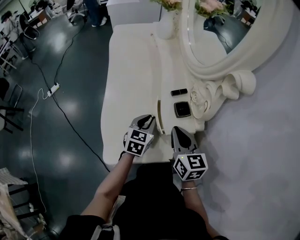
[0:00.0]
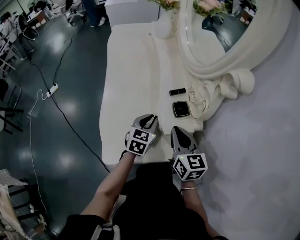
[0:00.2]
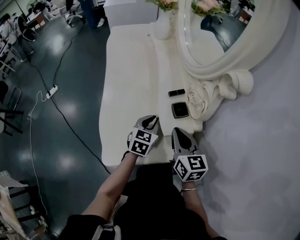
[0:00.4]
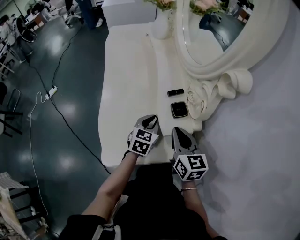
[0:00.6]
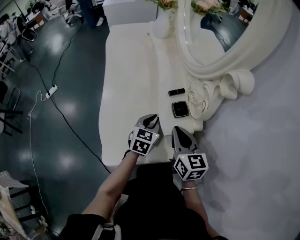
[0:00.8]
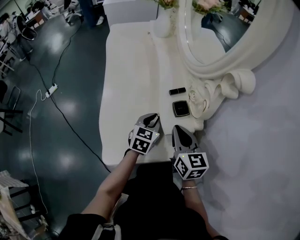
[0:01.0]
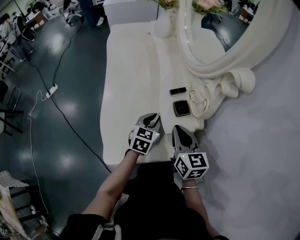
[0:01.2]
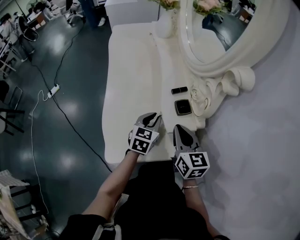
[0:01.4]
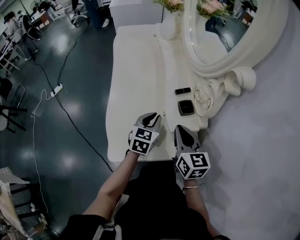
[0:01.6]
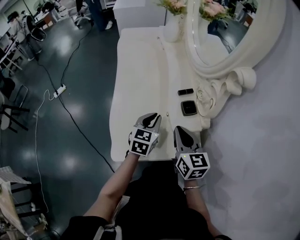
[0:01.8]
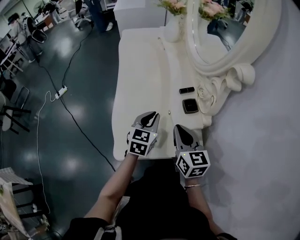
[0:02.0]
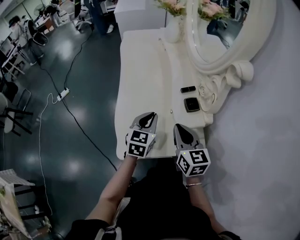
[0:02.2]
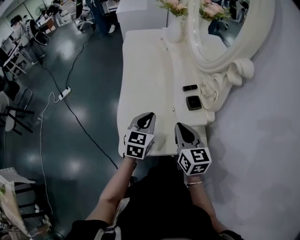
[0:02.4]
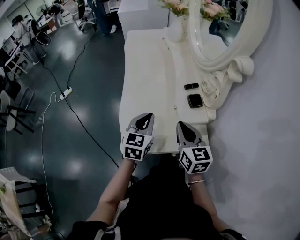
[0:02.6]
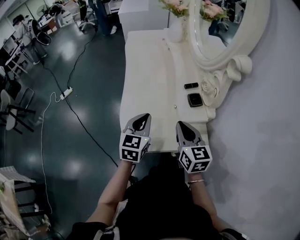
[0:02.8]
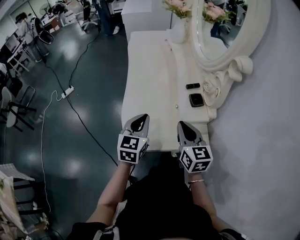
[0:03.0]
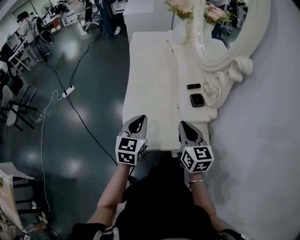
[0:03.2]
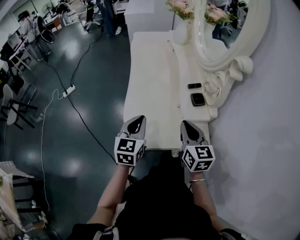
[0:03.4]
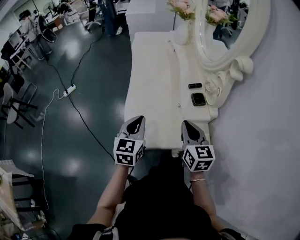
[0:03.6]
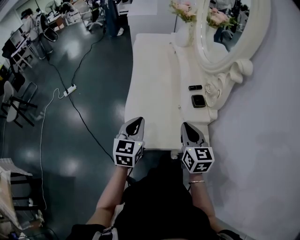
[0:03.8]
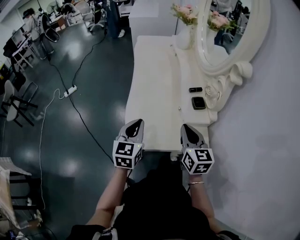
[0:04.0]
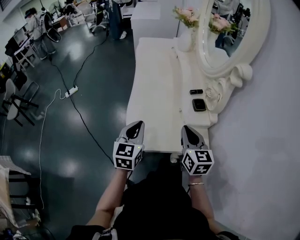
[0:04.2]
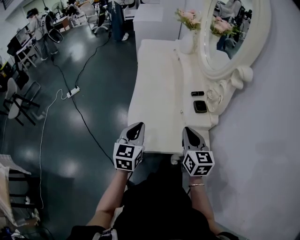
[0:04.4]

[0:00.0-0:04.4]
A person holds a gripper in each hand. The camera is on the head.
0:00.0 to 0:01.4: The grippers stay close to where they were, moving slightly.
0:01.4 to 0:03.0: The left gripper shifts roughly 20 cm to the left, backward and upward. Meanwhile the right gripper heads to the left and backward, covering some 10 cm.
0:03.0 to 0:04.4: The left gripper ends up some 5 cm from where it was.

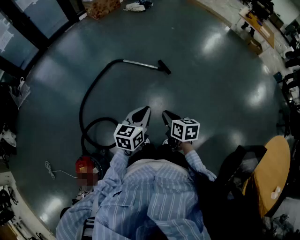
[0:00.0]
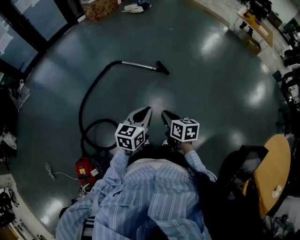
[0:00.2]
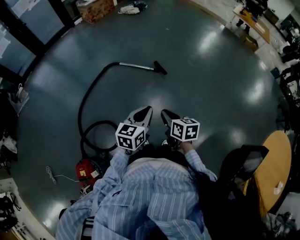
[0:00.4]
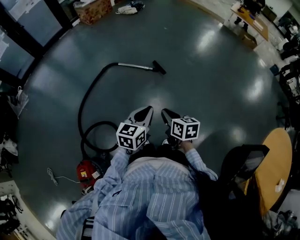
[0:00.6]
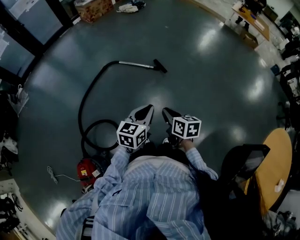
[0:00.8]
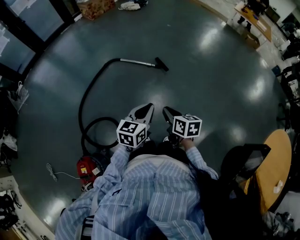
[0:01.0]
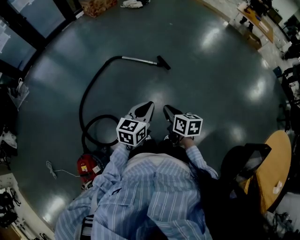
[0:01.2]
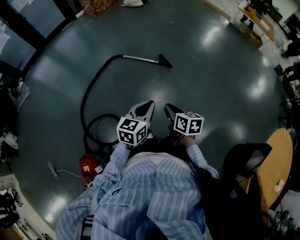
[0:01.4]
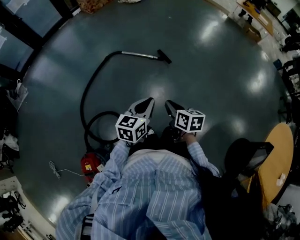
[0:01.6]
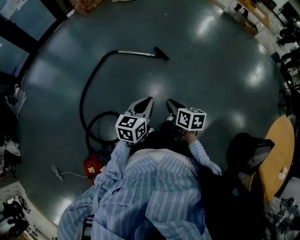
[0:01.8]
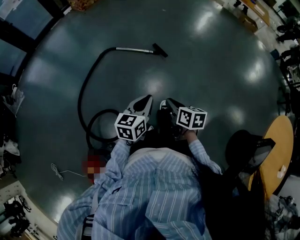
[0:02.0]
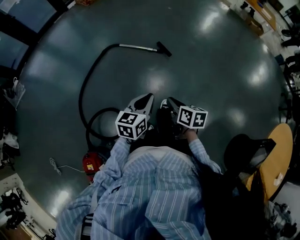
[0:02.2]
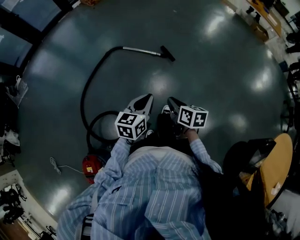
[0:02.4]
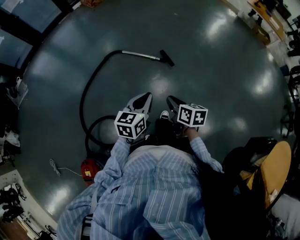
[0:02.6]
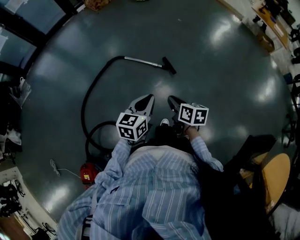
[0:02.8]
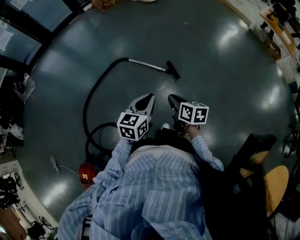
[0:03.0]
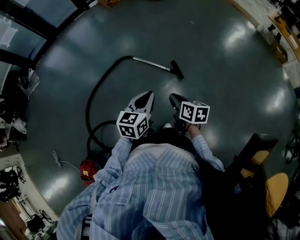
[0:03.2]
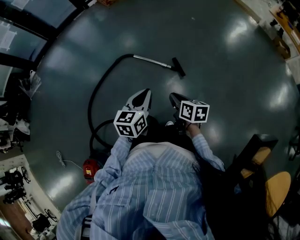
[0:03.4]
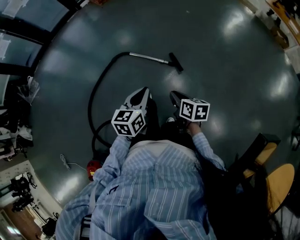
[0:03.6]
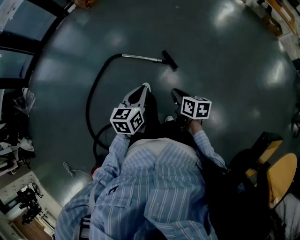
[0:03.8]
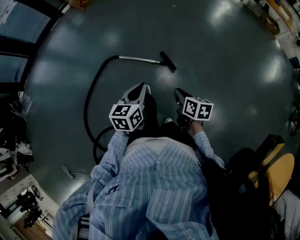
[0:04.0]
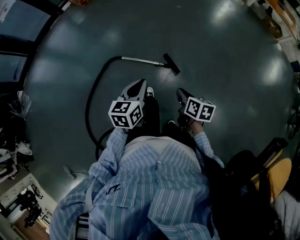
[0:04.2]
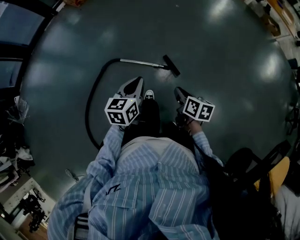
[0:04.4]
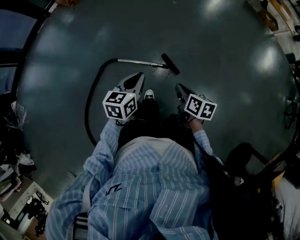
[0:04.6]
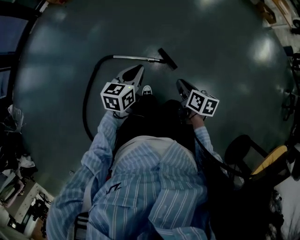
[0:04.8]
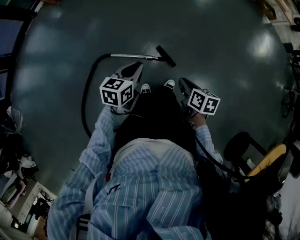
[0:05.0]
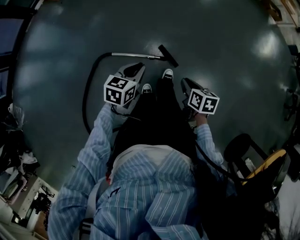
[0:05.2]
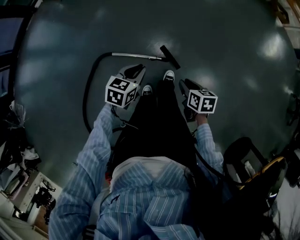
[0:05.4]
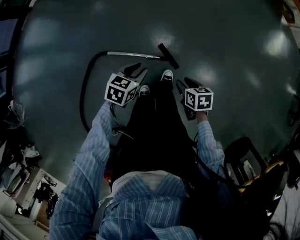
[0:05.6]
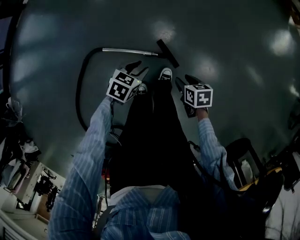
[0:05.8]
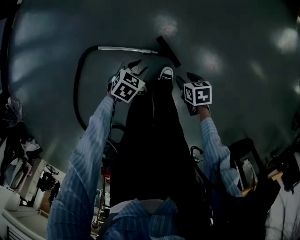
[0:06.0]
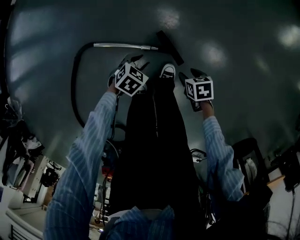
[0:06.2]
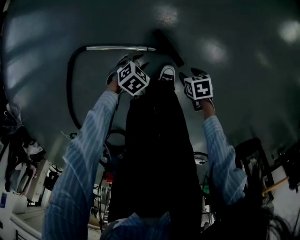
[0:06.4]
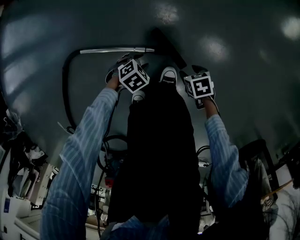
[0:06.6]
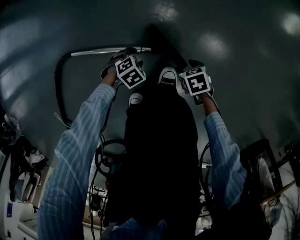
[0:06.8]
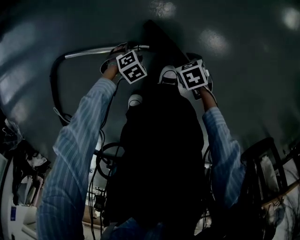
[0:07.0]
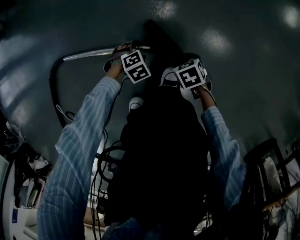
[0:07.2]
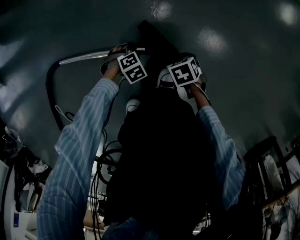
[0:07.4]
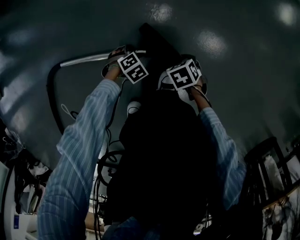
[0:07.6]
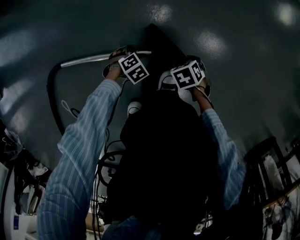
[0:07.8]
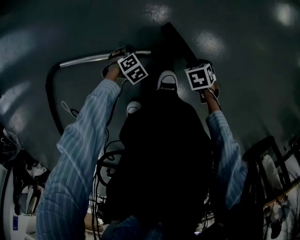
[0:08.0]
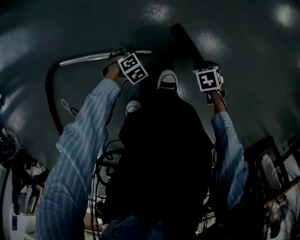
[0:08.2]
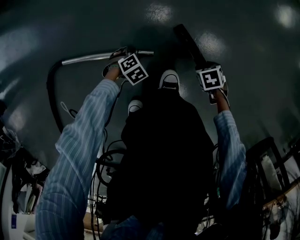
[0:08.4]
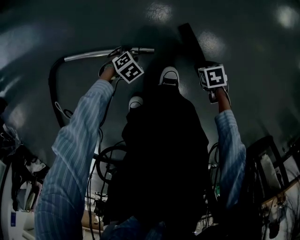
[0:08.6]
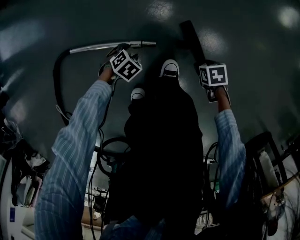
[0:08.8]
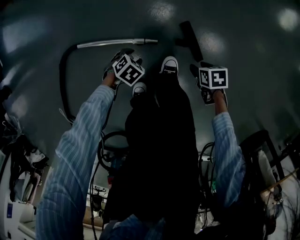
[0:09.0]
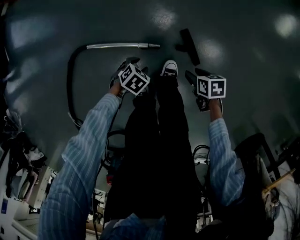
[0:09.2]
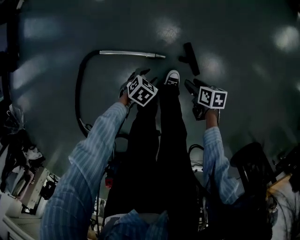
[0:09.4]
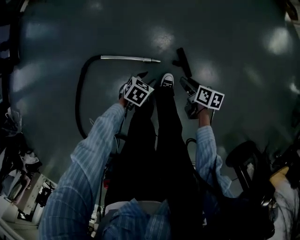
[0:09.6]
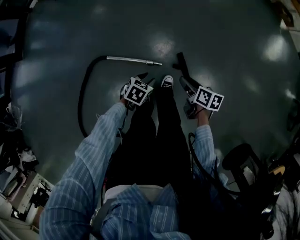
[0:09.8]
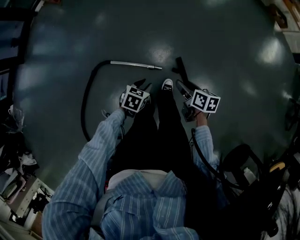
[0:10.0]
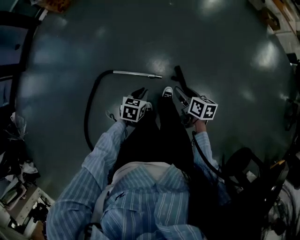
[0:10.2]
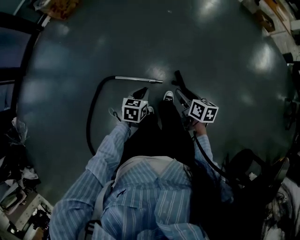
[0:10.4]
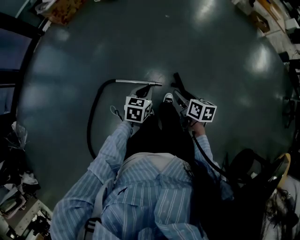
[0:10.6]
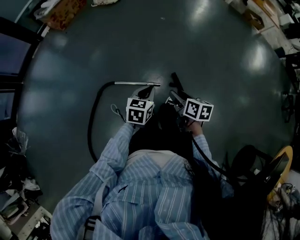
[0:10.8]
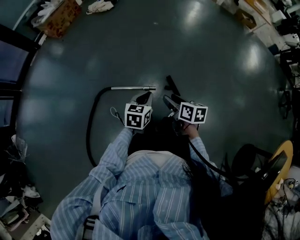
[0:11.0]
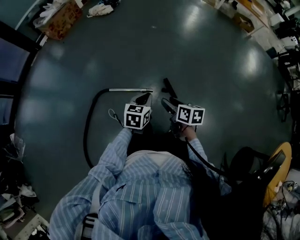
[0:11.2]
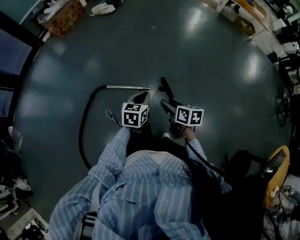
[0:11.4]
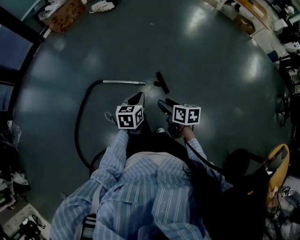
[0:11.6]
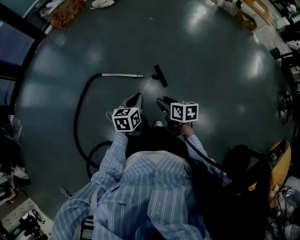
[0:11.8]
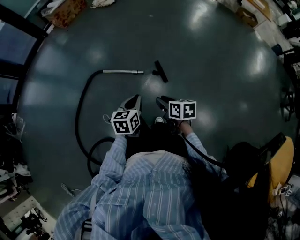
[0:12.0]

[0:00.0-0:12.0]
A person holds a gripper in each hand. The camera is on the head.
0:00.0 to 0:01.6: The grippers make only small movements.
0:01.6 to 0:03.0: The two grippers go some 25 cm forward.
0:03.0 to 0:04.4: Both grippers move forward, about 25 cm. The right gripper changes its angle by about 20 degrees.
0:04.4 to 0:06.0: Both grippers travel together downward, about 35 cm. The right gripper rotates about 30 degrees, and opens up; the left gripper tilts its fingers some 30 degrees downward, and opens.
0:06.0 to 0:07.6: The two grippers go roughly 40 cm downward. The right gripper turns by about 20 degrees. The left gripper rotates roughly 40 degrees.
0:07.6 to 0:09.0: The two grippers go some 15 cm upward. The right gripper swivels roughly 20 degrees. Meanwhile the left gripper rotates approximately 20 degrees.
0:09.0 to 0:10.4: Both grippers travel together upward, roughly 50 cm. The right gripper angles its fingers upward, by about 30 degrees. Meanwhile the left gripper tips its fingers upward by about 30 degrees, and closes its fingers.
0:10.4 to 0:12.0: The left gripper moves backward and to the right, roughly 35 cm. Meanwhile the right gripper goes some 30 cm backward, and closes its fingers.

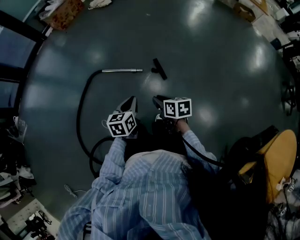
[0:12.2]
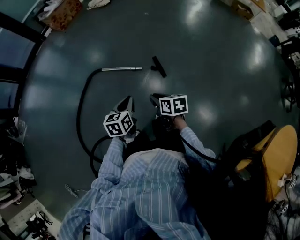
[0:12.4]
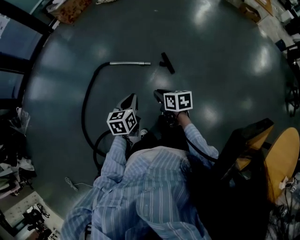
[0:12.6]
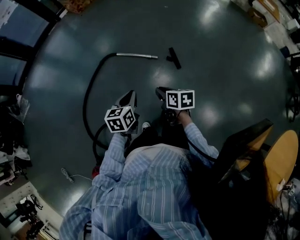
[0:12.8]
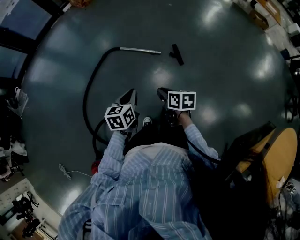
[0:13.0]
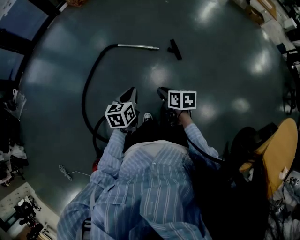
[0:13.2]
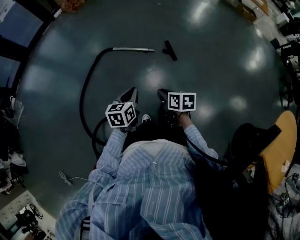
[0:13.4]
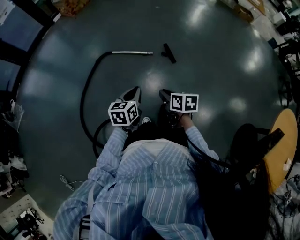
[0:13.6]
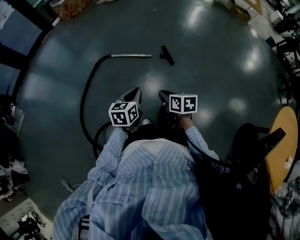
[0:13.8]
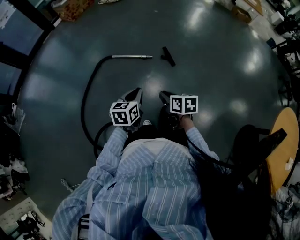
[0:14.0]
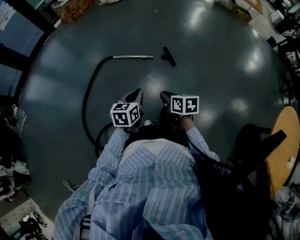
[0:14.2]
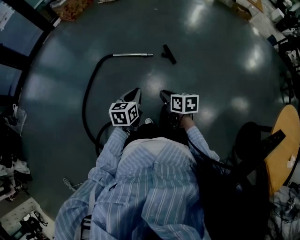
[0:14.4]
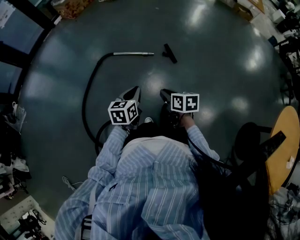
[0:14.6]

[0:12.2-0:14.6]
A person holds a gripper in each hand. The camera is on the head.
0:12.2 to 0:13.4: Both grippers travel together to the left and backward, roughly 25 cm.
0:13.4 to 0:14.6: There are only small adjustments of the grippers.

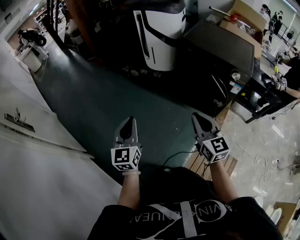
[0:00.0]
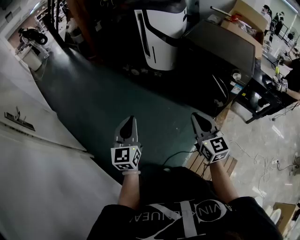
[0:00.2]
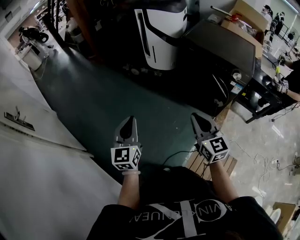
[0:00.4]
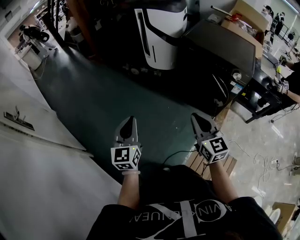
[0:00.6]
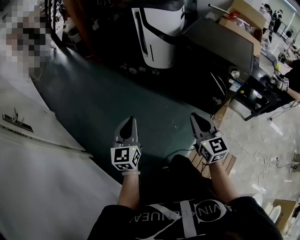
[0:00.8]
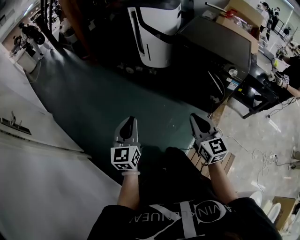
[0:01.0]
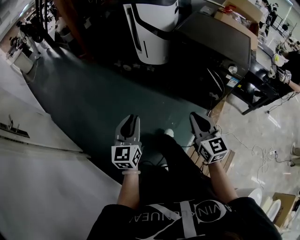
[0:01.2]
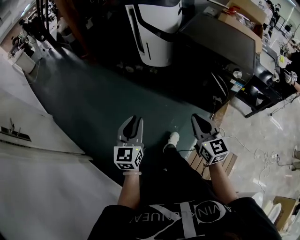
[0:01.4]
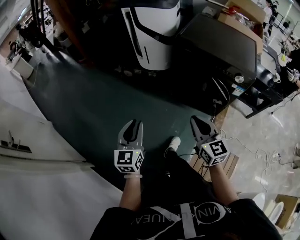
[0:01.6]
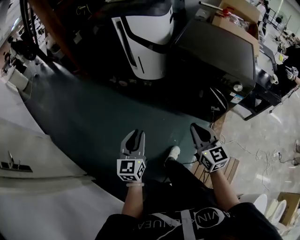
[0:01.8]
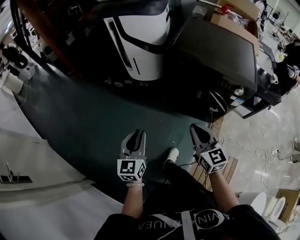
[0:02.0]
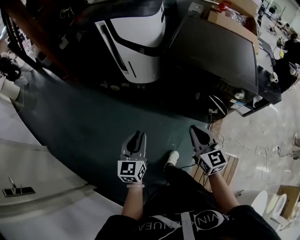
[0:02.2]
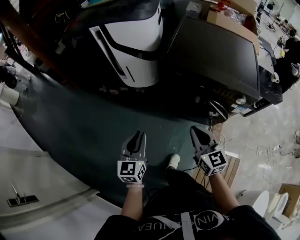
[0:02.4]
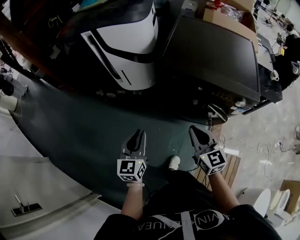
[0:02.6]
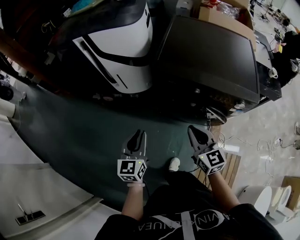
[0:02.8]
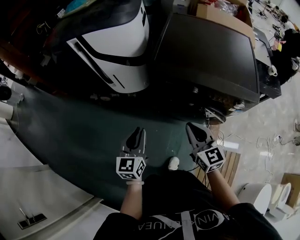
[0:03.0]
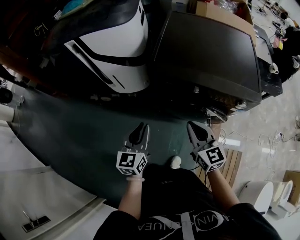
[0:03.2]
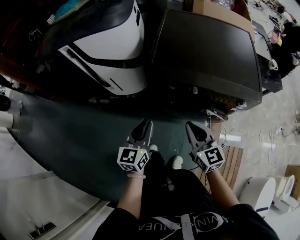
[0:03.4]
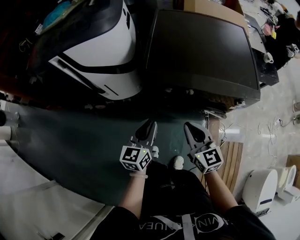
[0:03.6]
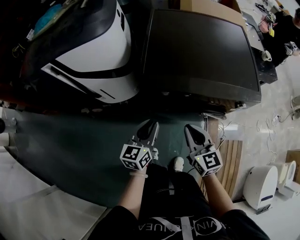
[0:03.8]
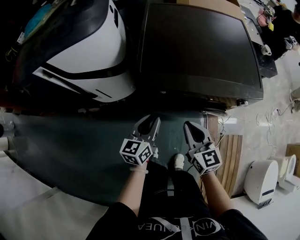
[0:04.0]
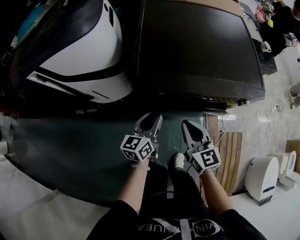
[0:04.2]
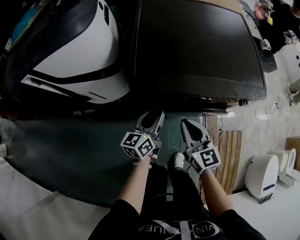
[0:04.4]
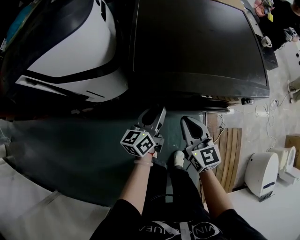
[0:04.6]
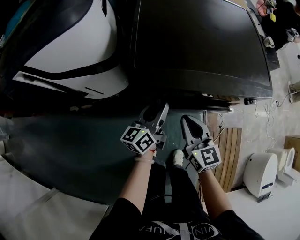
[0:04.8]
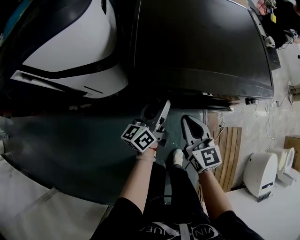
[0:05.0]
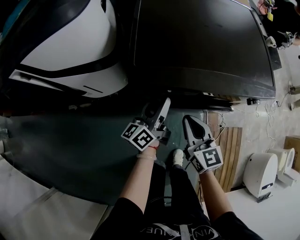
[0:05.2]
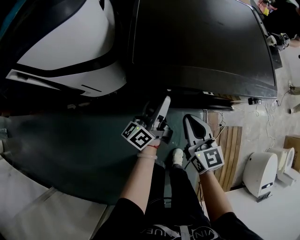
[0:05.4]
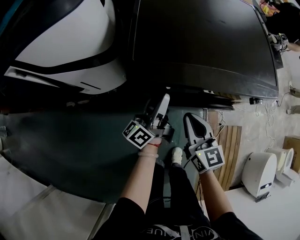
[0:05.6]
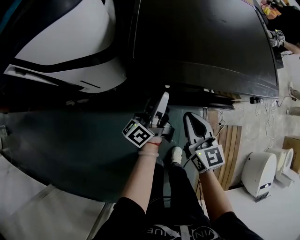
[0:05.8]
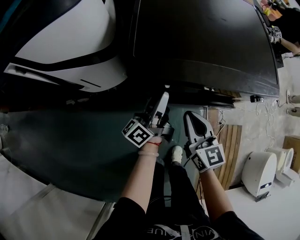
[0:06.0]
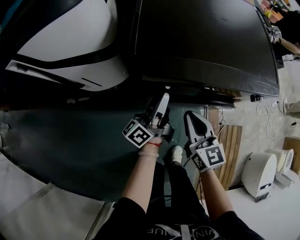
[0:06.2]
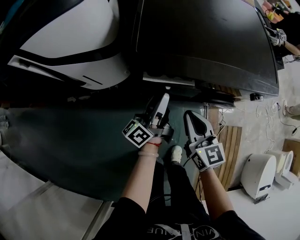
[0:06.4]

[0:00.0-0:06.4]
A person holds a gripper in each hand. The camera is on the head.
0:00.0 to 0:01.6: The two grippers go roughly 10 cm forward.
0:01.6 to 0:03.2: The grippers both shift forward by some 30 cm. The left gripper rotates roughly 20 degrees.
0:03.2 to 0:04.8: The left gripper travels forward and downward by some 20 cm, and turns by approximately 40 degrees. The right gripper goes approximately 15 cm forward and downward.
0:04.8 to 0:06.4: The left gripper turns by about 30 degrees.
